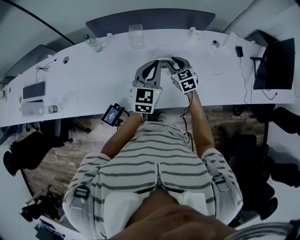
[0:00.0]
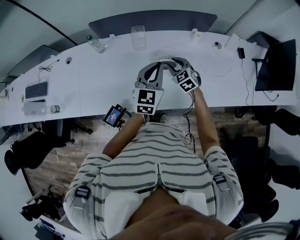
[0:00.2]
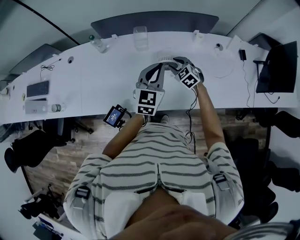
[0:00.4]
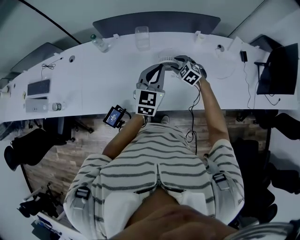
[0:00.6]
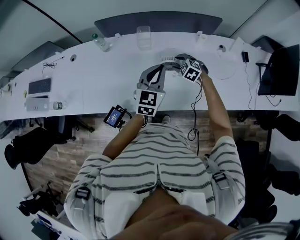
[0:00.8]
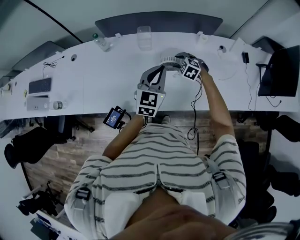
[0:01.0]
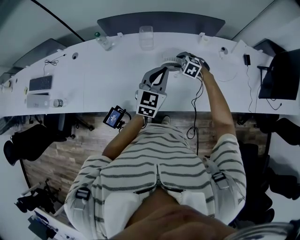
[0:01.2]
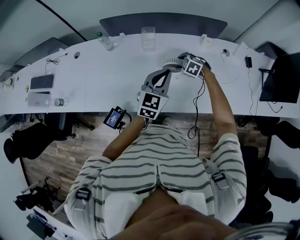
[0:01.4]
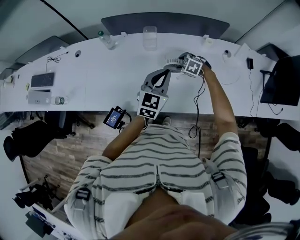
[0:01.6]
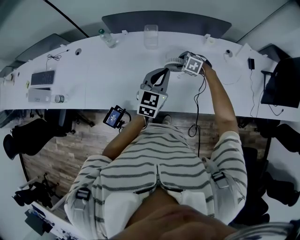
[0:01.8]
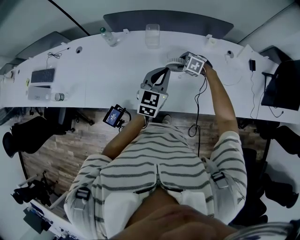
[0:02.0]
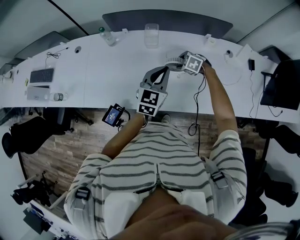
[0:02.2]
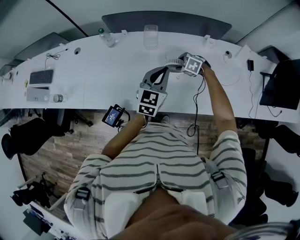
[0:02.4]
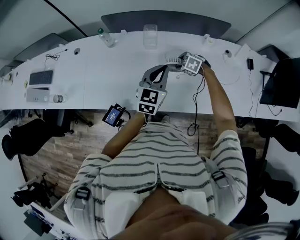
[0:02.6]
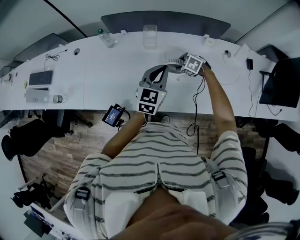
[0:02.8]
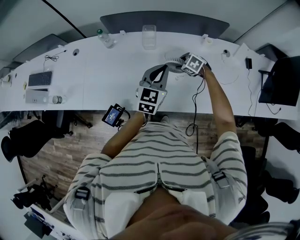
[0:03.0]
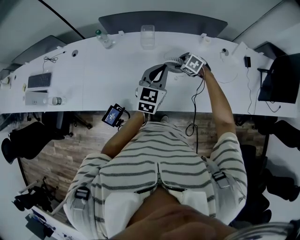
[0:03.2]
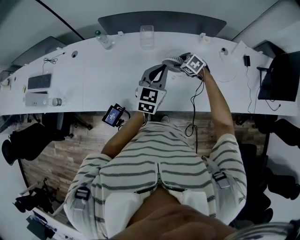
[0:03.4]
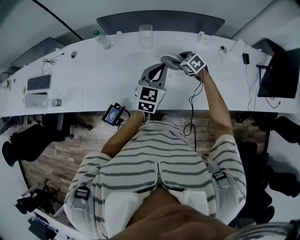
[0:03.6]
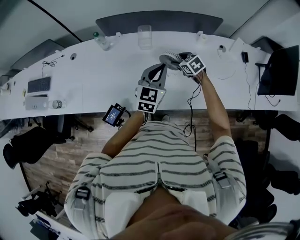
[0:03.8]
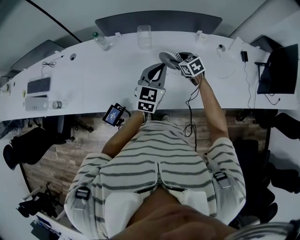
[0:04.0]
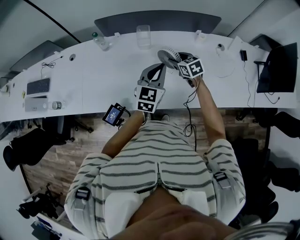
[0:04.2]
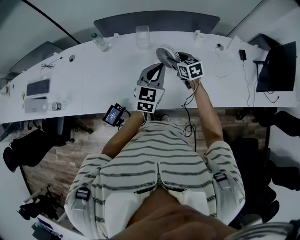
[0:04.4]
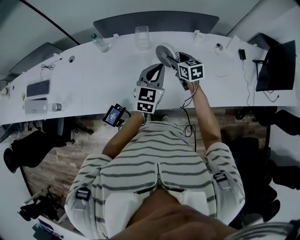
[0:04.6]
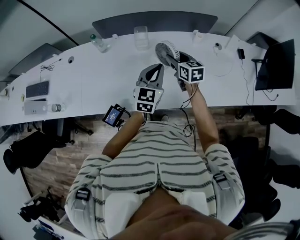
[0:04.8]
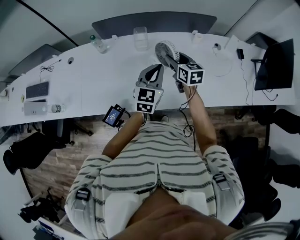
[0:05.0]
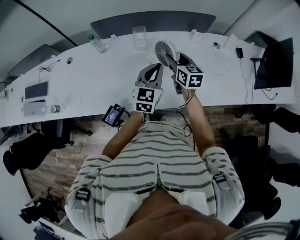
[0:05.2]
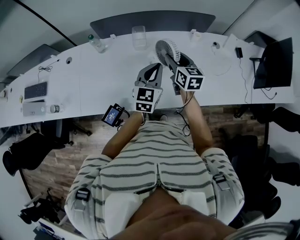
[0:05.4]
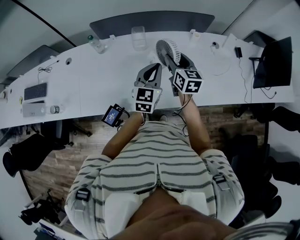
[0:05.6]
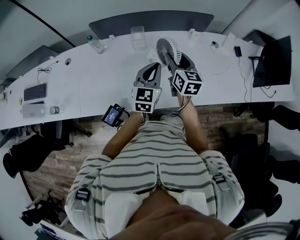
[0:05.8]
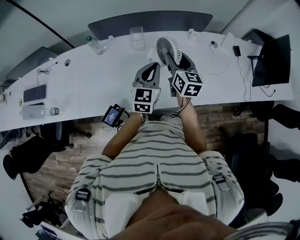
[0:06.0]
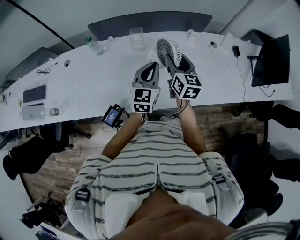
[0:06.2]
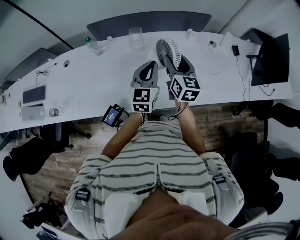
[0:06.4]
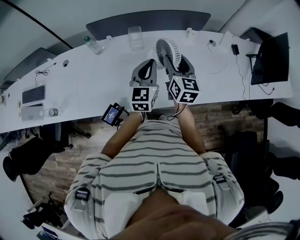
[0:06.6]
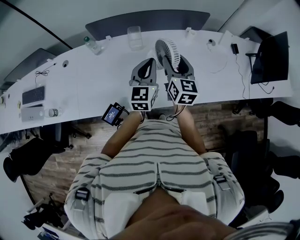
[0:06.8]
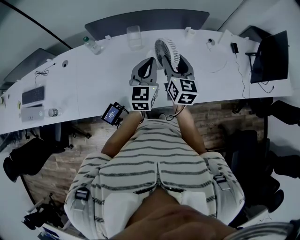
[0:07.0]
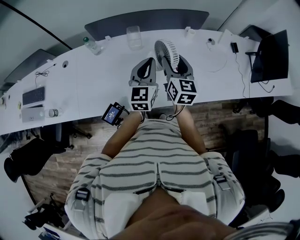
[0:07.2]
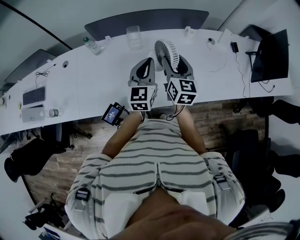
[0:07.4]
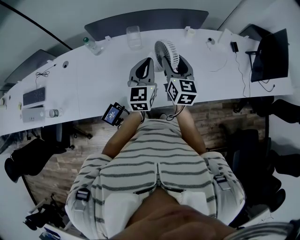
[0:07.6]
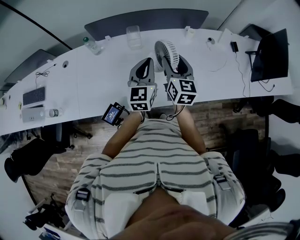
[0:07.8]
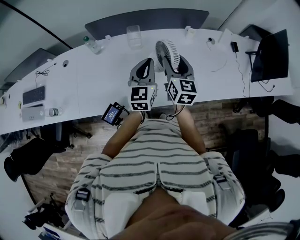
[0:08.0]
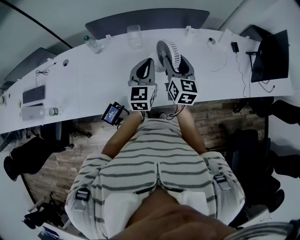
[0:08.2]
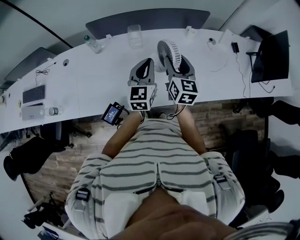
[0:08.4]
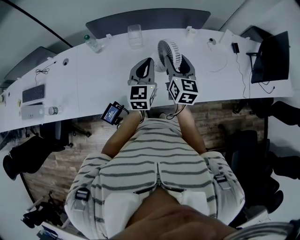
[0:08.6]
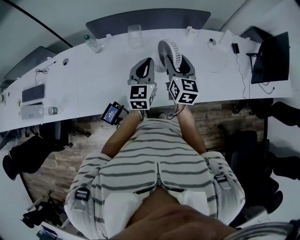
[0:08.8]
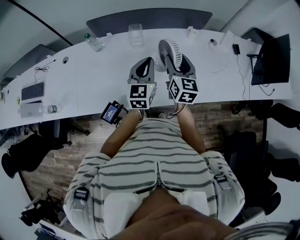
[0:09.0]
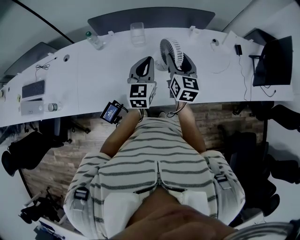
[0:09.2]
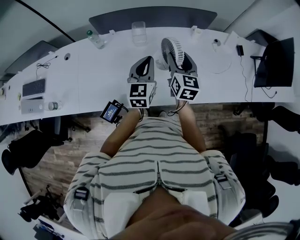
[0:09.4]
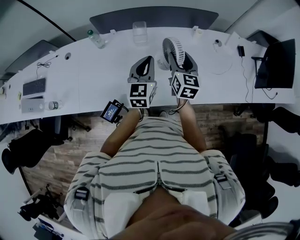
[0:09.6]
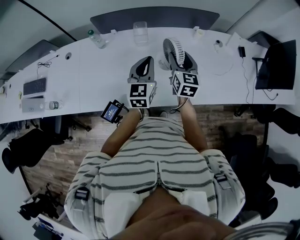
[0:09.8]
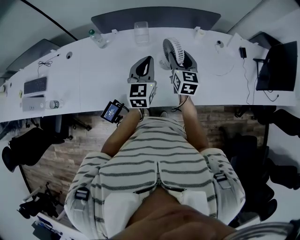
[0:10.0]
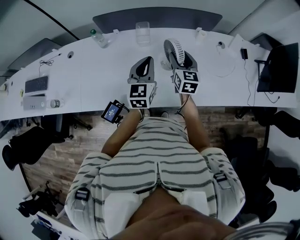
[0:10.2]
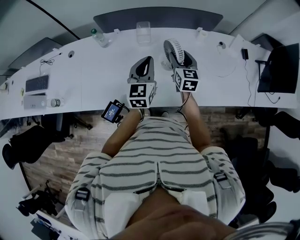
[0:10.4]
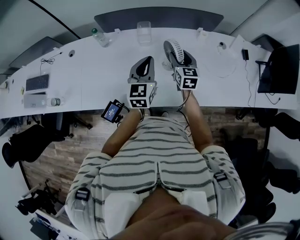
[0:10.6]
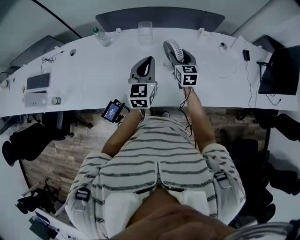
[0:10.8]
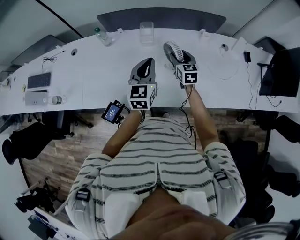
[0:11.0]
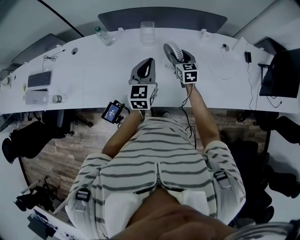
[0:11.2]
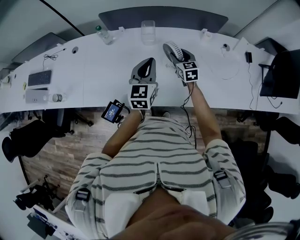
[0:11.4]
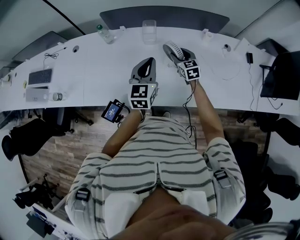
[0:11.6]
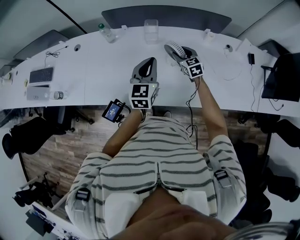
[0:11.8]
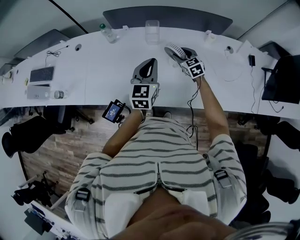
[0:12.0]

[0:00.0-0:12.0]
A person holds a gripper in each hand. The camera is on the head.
0:00.0 to 0:01.6: The right gripper moves downward, about 10 cm, tips its fingers downward by about 30 degrees, and opens.
0:01.6 to 0:03.0: The grippers stay close to where they were, moving slightly.
0:03.0 to 0:04.4: The right gripper travels upward by roughly 10 cm, and turns by about 50 degrees.
0:04.4 to 0:06.0: The right gripper moves upward, approximately 10 cm, and turns by about 30 degrees.
0:06.0 to 0:09.0: The grippers move only a little.
0:09.0 to 0:10.4: The right gripper shifts approximately 10 cm downward and forward.
0:10.4 to 0:12.0: The right gripper shifts about 10 cm downward and forward, and turns by about 40 degrees.

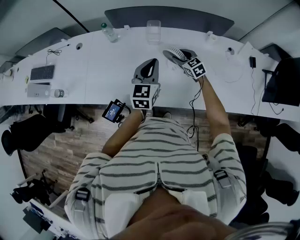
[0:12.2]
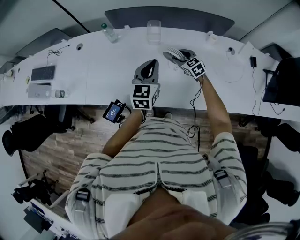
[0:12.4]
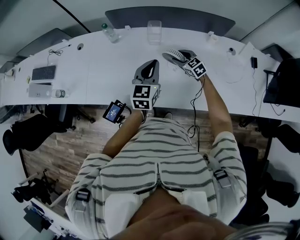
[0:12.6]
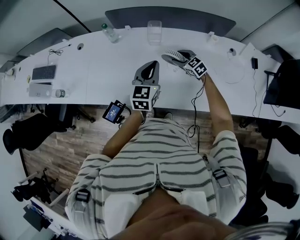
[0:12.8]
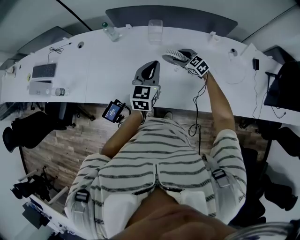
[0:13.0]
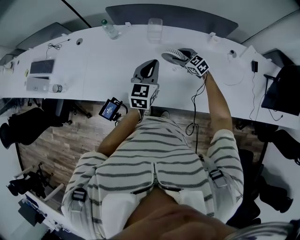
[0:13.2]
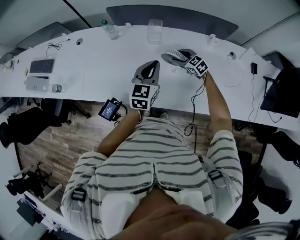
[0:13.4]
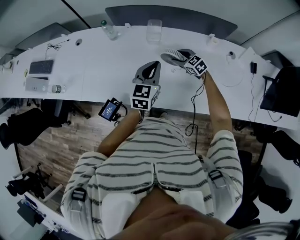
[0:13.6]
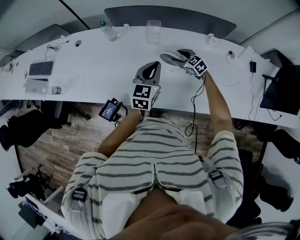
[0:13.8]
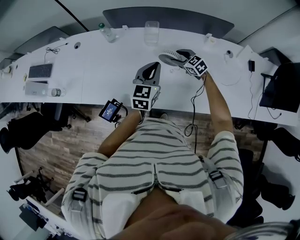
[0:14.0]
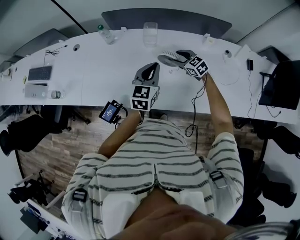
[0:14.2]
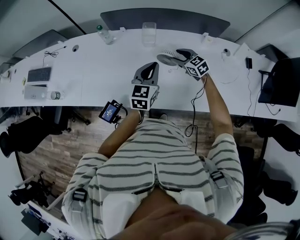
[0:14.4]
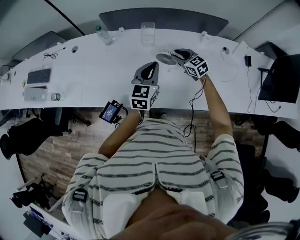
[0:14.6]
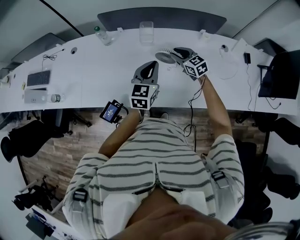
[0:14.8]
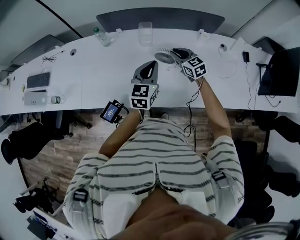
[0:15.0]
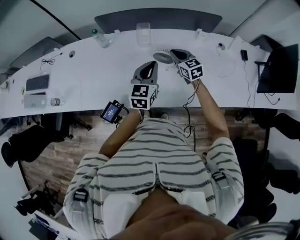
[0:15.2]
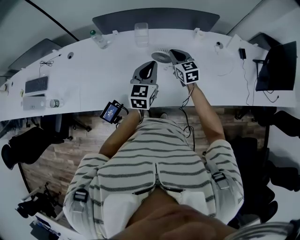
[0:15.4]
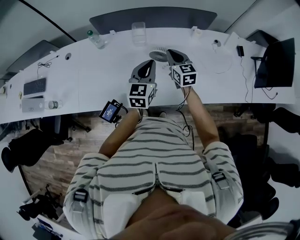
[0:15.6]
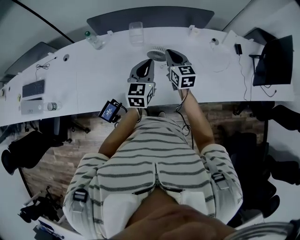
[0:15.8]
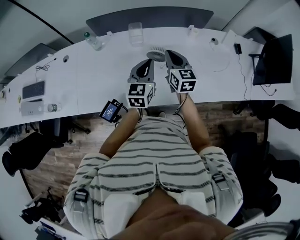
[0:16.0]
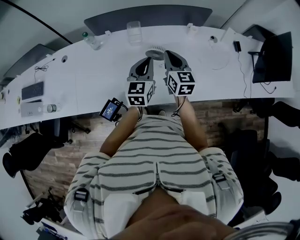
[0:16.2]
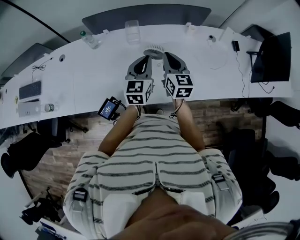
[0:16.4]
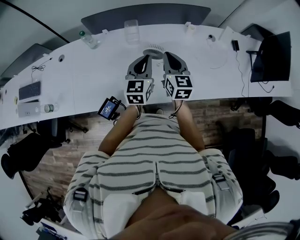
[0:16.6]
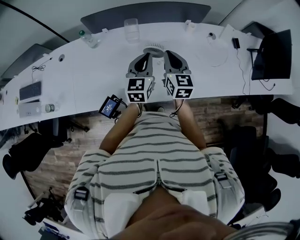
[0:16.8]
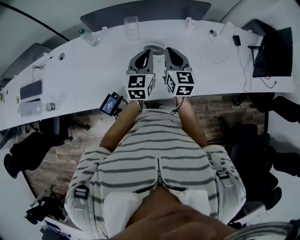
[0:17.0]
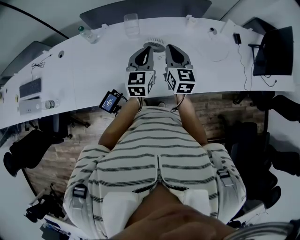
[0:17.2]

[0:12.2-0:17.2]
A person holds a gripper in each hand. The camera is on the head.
0:12.2 to 0:13.8: The grippers stay close to where they were, moving slightly.
0:13.8 to 0:15.6: The right gripper travels upward and backward by some 15 cm, turns by about 40 degrees, and closes.
0:15.6 to 0:17.2: The right gripper moves upward, approximately 5 cm.

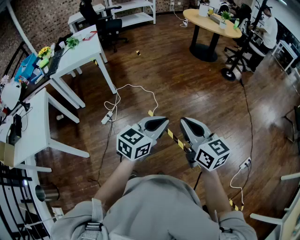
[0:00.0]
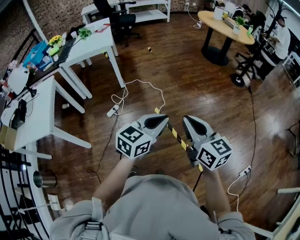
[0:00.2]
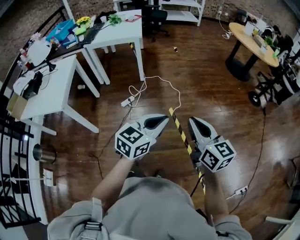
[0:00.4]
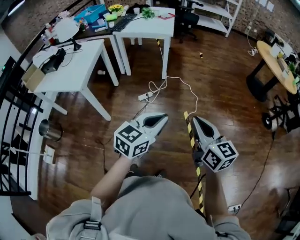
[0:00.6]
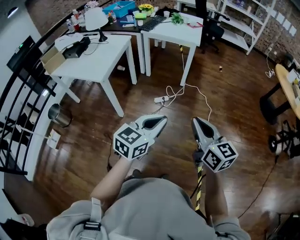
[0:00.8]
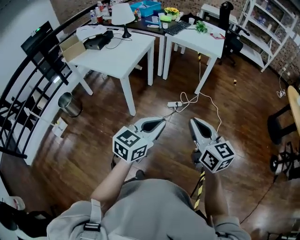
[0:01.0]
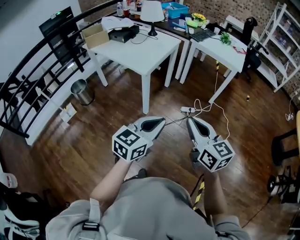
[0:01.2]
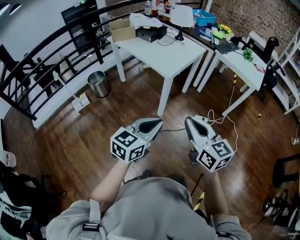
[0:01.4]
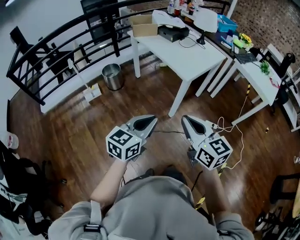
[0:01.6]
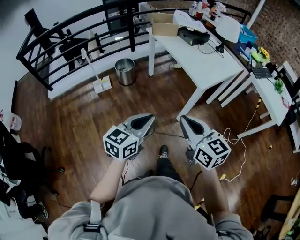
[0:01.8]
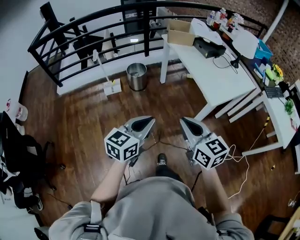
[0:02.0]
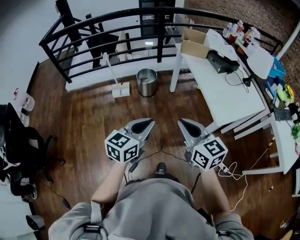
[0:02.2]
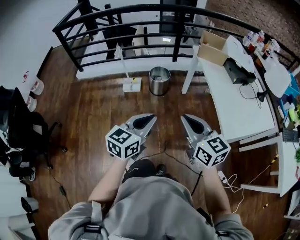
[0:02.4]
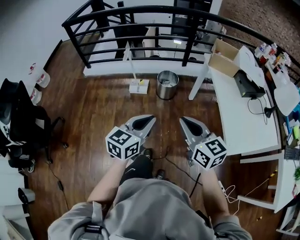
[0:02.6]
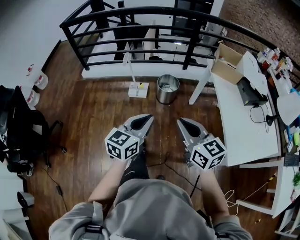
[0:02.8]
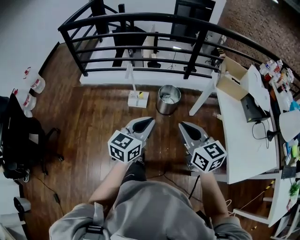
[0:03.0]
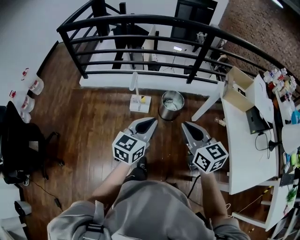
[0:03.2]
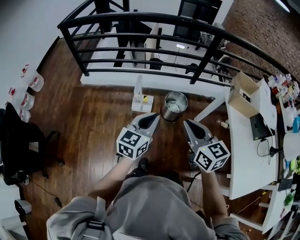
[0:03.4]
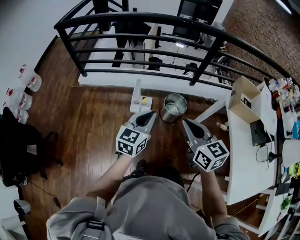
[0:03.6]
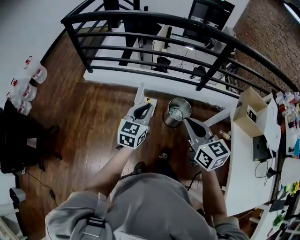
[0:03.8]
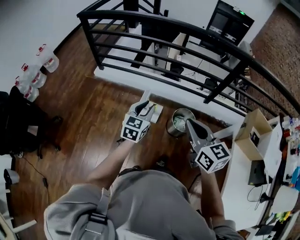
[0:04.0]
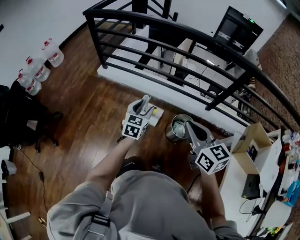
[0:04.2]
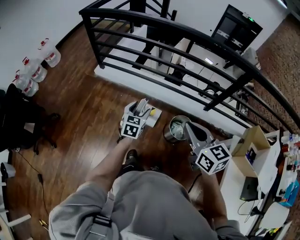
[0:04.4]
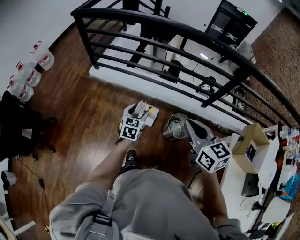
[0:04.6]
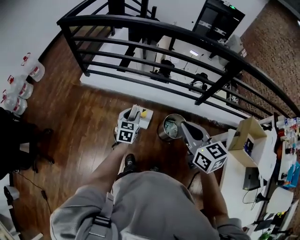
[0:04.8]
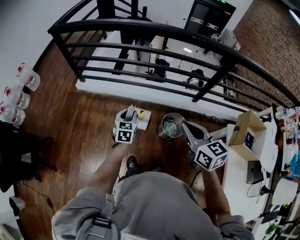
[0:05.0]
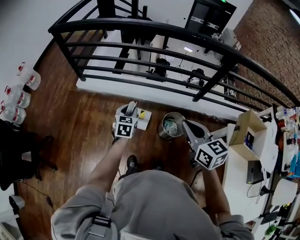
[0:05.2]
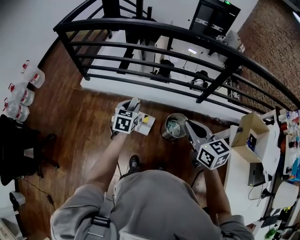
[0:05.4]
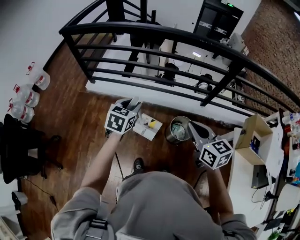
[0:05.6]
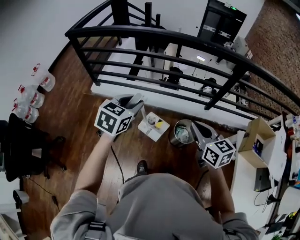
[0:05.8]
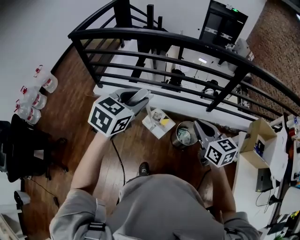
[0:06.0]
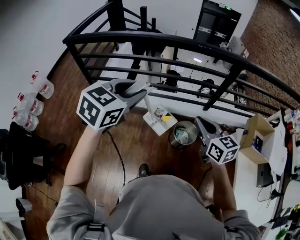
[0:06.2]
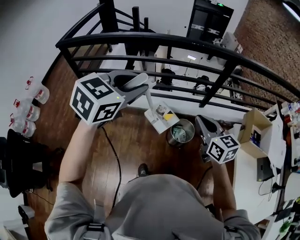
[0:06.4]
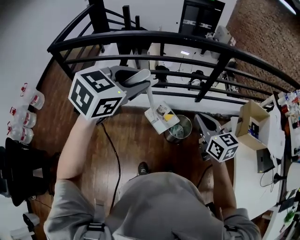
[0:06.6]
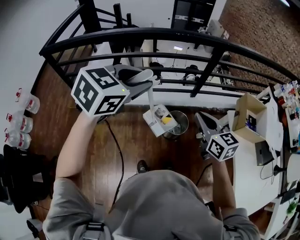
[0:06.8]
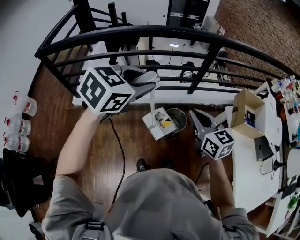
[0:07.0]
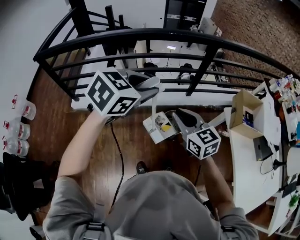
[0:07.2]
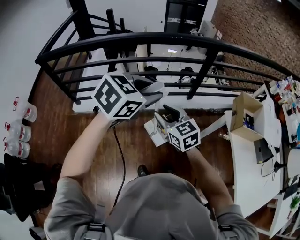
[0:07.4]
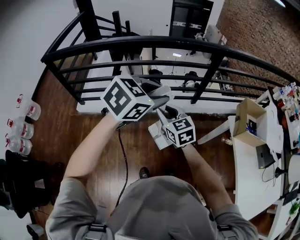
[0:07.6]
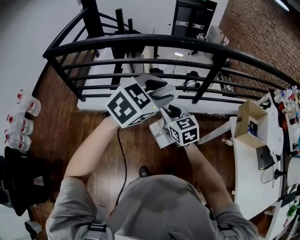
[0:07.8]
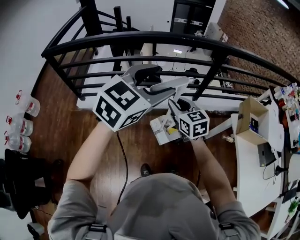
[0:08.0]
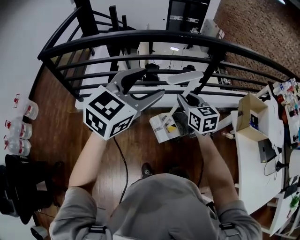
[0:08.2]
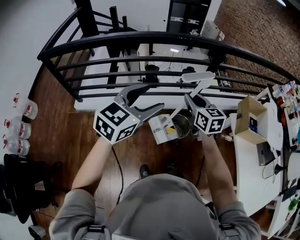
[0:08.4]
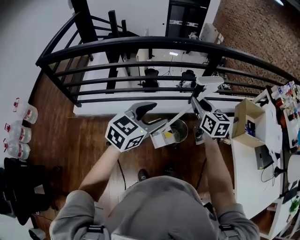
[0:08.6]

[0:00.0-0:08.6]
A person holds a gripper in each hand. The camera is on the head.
0:00.0 to 0:01.4: The two grippers travel together, some 60 cm. The left gripper changes its angle by about 70 degrees; the right gripper changes its angle by some 60 degrees.
0:01.4 to 0:02.8: The pair of grippers is taken some 50 cm. The left gripper changes its angle by some 50 degrees, while the right gripper changes its angle by roughly 50 degrees.
0:02.8 to 0:04.4: The two grippers travel together, roughly 50 cm. The left gripper swivels roughly 40 degrees, and opens its fingers.
0:04.4 to 0:05.8: The left gripper is displaced upward by roughly 20 cm, turns by roughly 20 degrees, and closes.
0:05.8 to 0:07.2: The left gripper travels to the right and upward by roughly 20 cm, and rotates some 40 degrees.
0:07.2 to 0:08.6: The right gripper heads forward and to the right, covering approximately 15 cm; the left gripper shifts roughly 5 cm downward, and opens.
